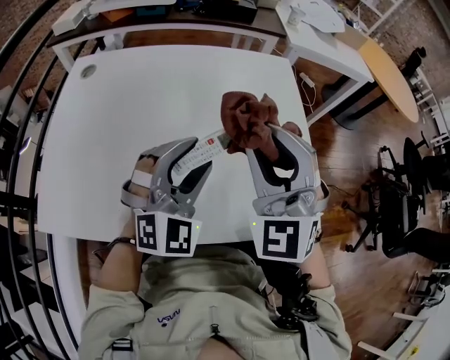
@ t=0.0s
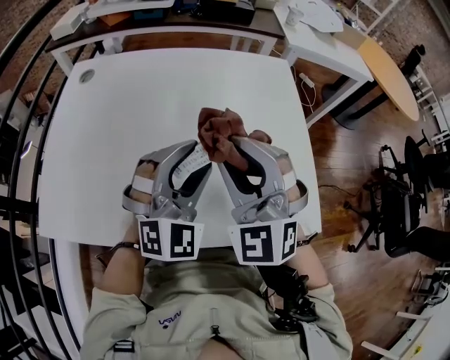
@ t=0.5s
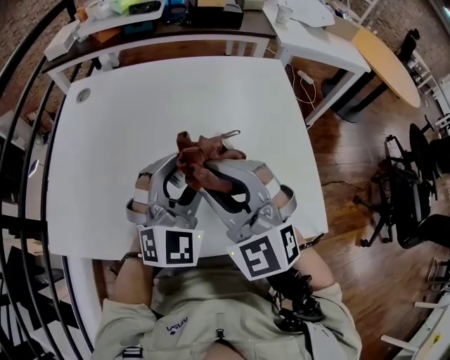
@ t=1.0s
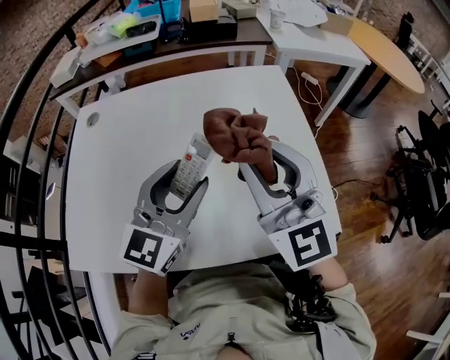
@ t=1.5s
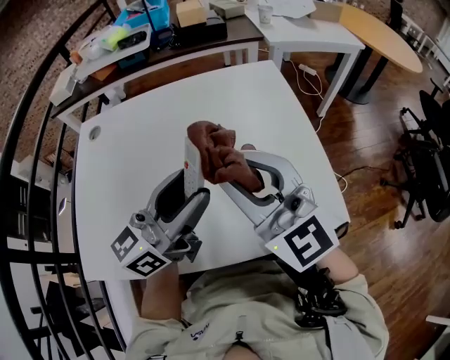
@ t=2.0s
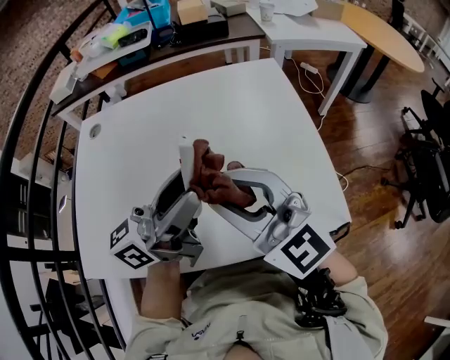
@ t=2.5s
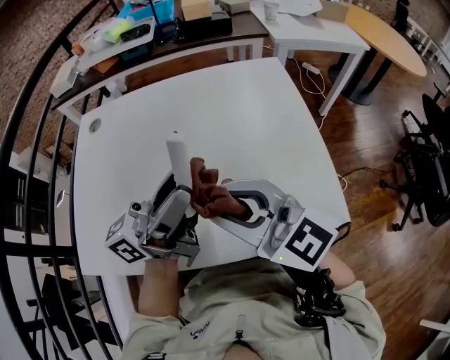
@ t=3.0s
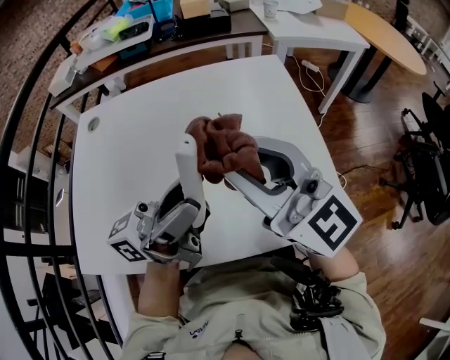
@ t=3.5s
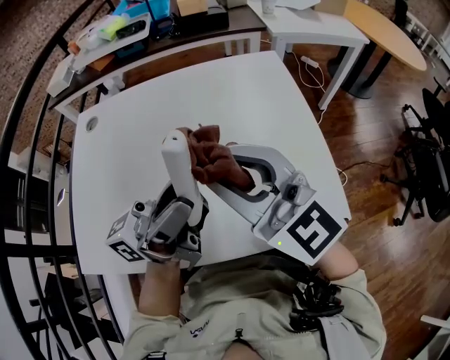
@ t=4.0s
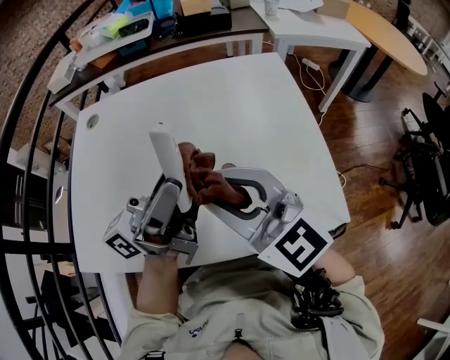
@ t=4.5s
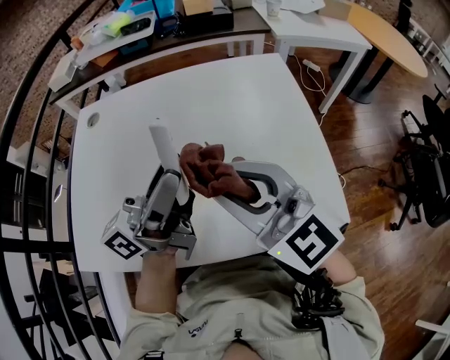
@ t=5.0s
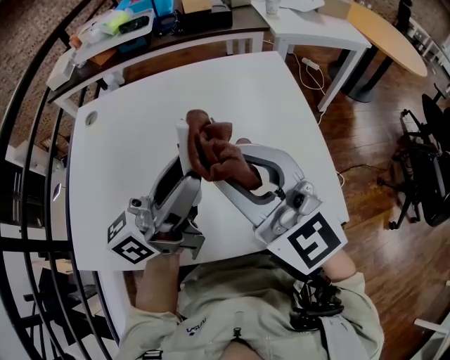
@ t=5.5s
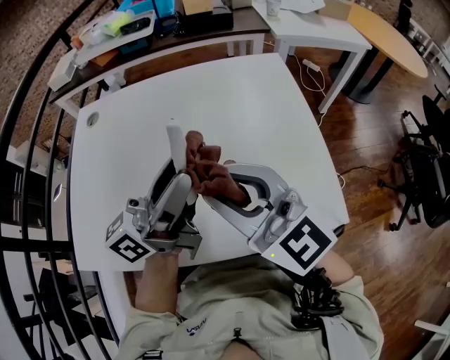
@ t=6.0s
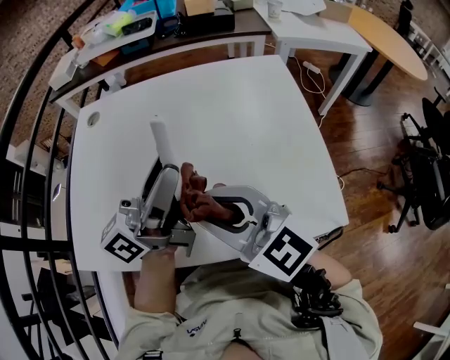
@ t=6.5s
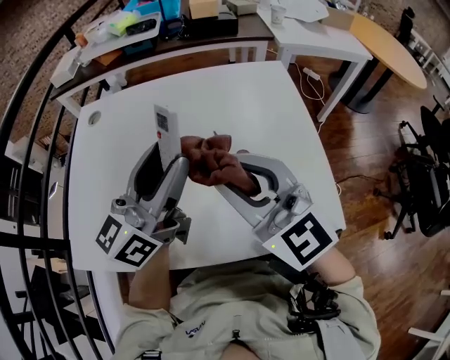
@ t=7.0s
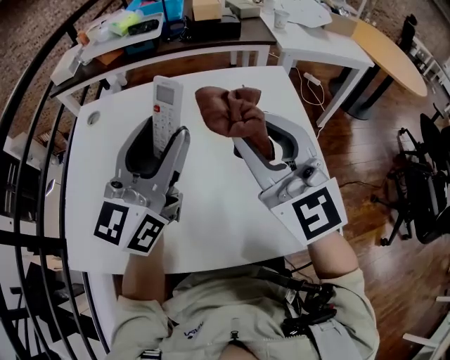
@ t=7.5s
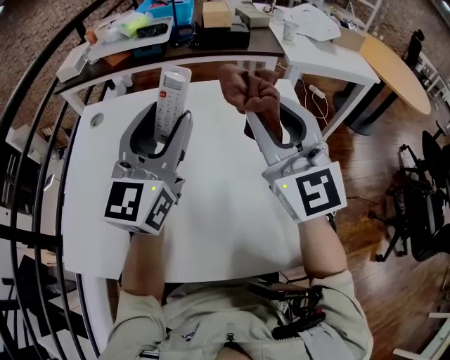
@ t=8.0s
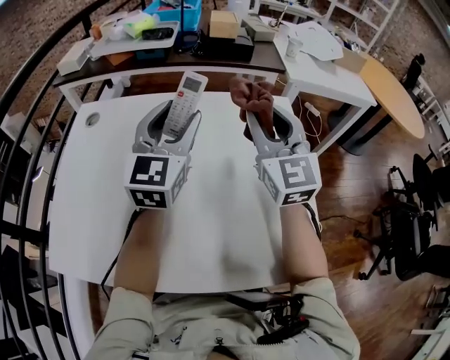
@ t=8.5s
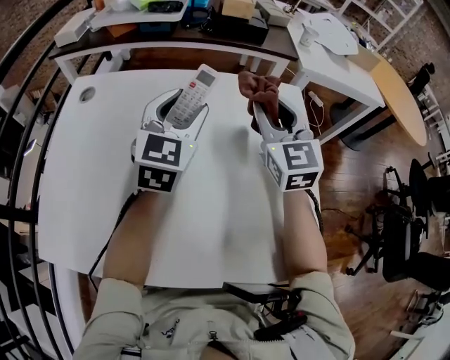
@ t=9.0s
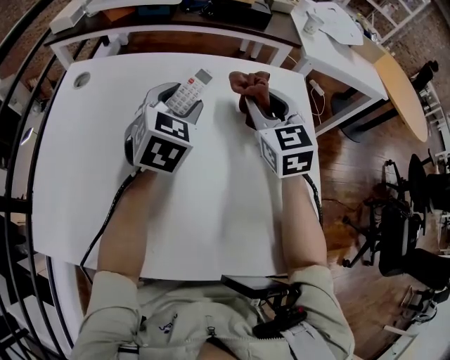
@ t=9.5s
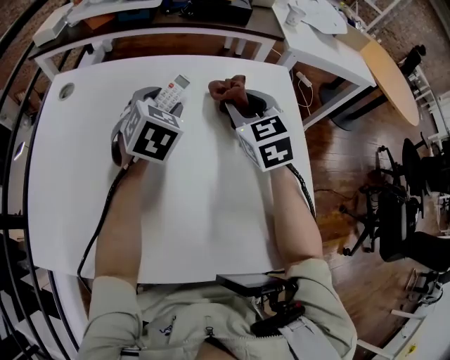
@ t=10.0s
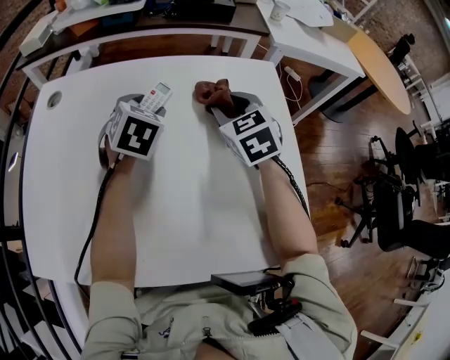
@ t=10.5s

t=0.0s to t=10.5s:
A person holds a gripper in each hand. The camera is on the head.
t=0.0s to t=2.0s: The left gripper heads upward, covering approximately 5 cm, and twists some 60 degrees counterclockwise, seen from behind, while the right gripper changes its angle by roughly 40 degrees.
t=2.0s to t=4.0s: The left gripper swivels approximately 40 degrees.
t=4.0s to t=6.5s: The right gripper goes up and down, about 10 cm each way, reversing 2 times, while the left gripper ends up roughly 5 cm from where it was, and turns by roughly 20 degrees.
t=6.5s to t=8.5s: The left gripper goes some 15 cm forward, and twists some 60 degrees clockwise, seen from behind. Meanwhile the right gripper is displaced forward and to the right by some 30 cm, and changes its angle by about 40 degrees.
t=8.5s to t=10.5s: Both grippers travel together downward, some 15 cm. The left gripper tips its fingers downward by roughly 40 degrees; the right gripper points its fingers about 40 degrees further downward.

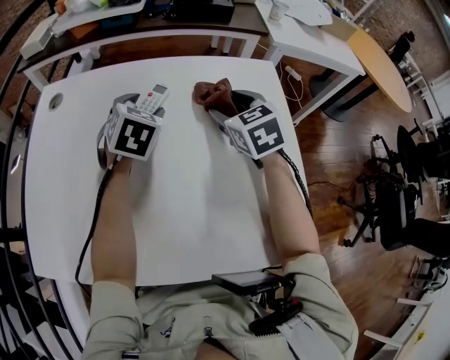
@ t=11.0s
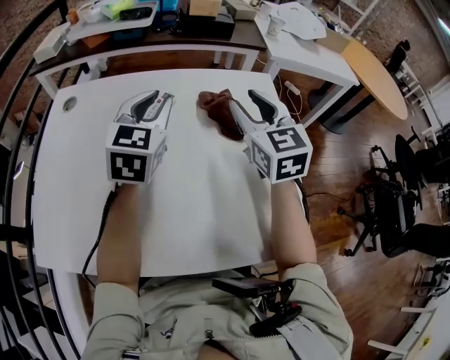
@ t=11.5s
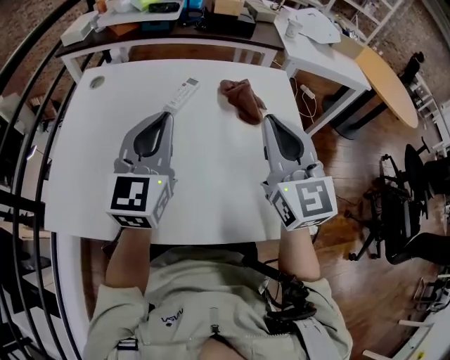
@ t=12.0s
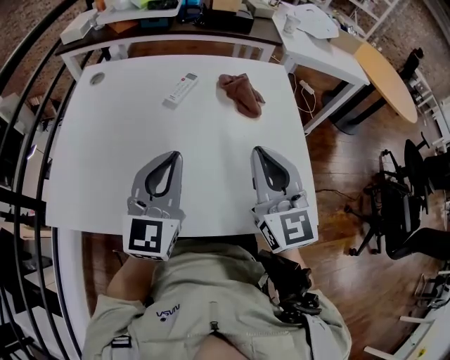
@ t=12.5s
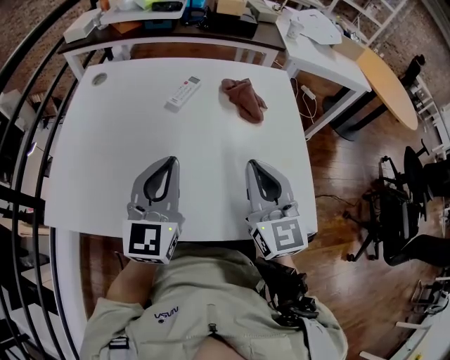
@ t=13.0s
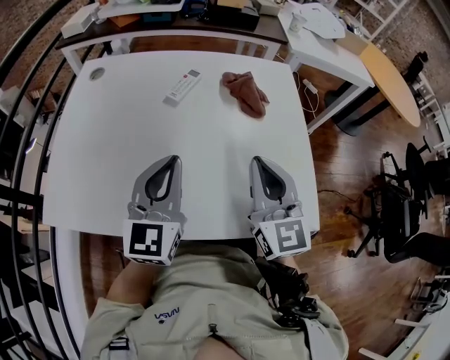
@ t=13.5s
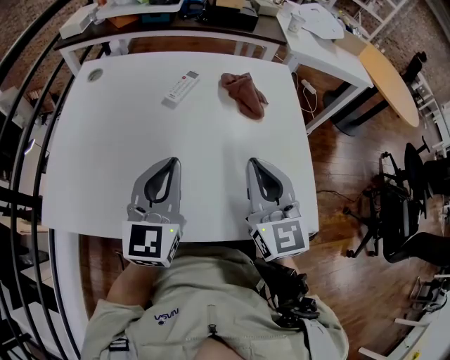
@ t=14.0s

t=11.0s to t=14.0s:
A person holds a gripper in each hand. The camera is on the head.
t=11.0s to t=12.5s: The left gripper is displaced backward by approximately 25 cm, tips its fingers upward by roughly 40 degrees, and closes. The right gripper is displaced backward and upward by about 25 cm, points its fingers approximately 40 degrees further upward, and closes its fingers.
t=12.5s to t=14.0s: The grippers make only small movements.

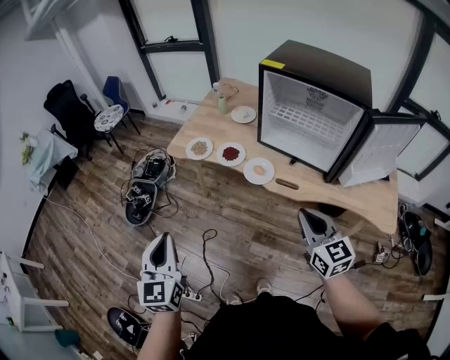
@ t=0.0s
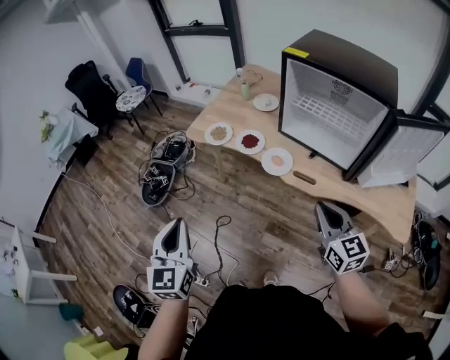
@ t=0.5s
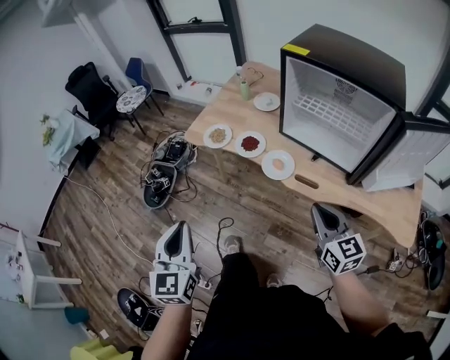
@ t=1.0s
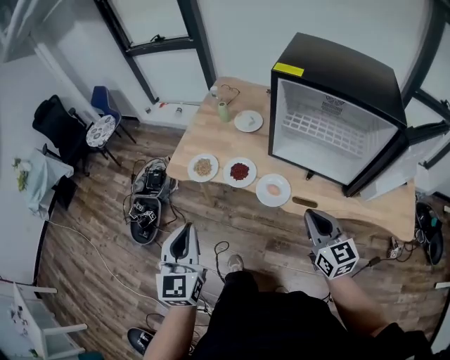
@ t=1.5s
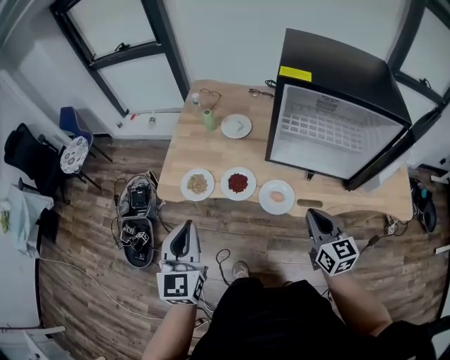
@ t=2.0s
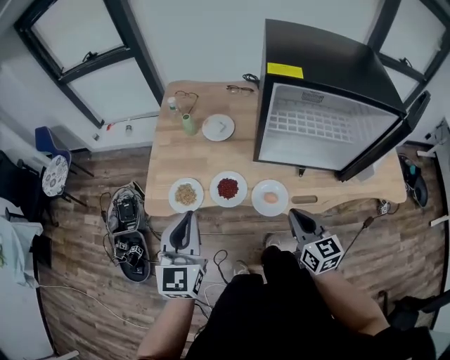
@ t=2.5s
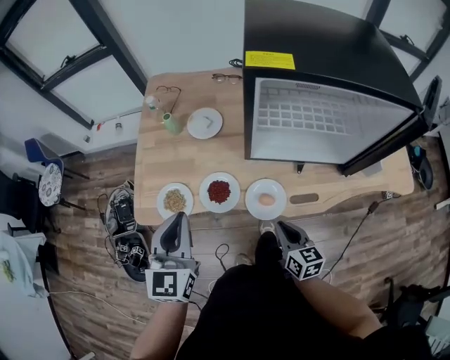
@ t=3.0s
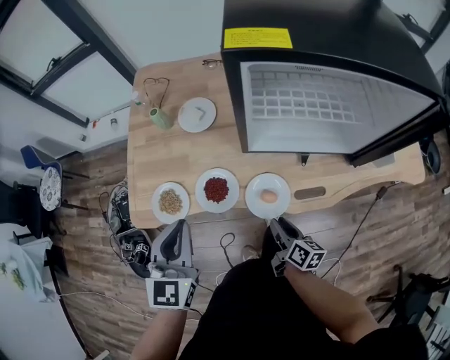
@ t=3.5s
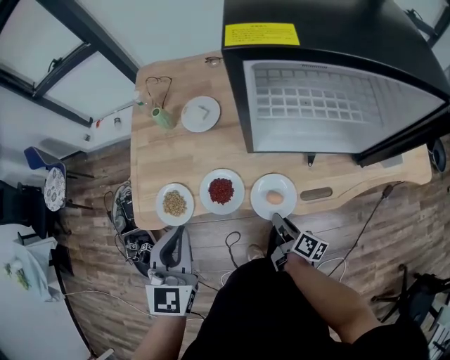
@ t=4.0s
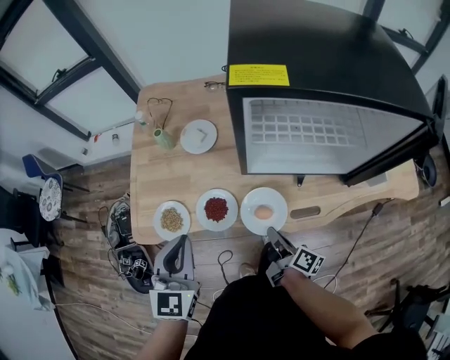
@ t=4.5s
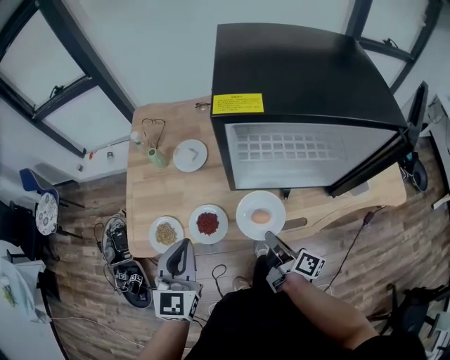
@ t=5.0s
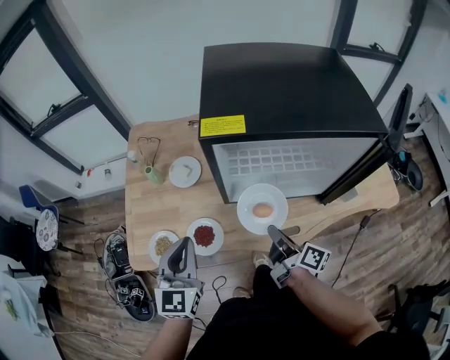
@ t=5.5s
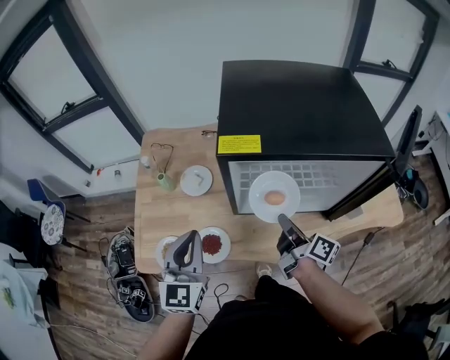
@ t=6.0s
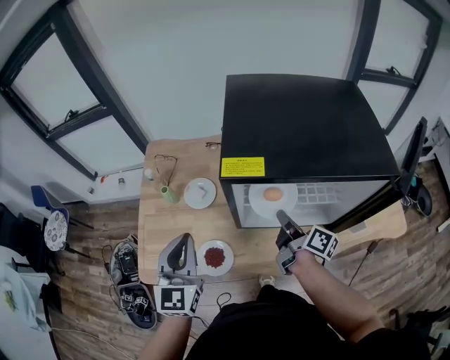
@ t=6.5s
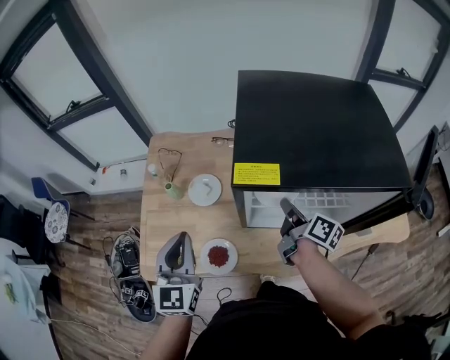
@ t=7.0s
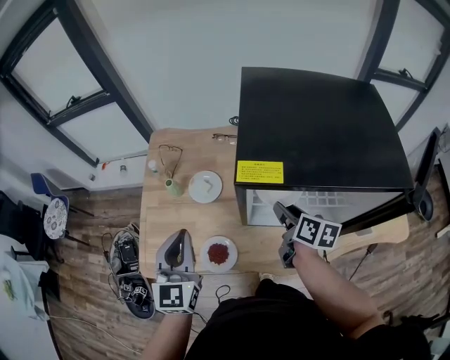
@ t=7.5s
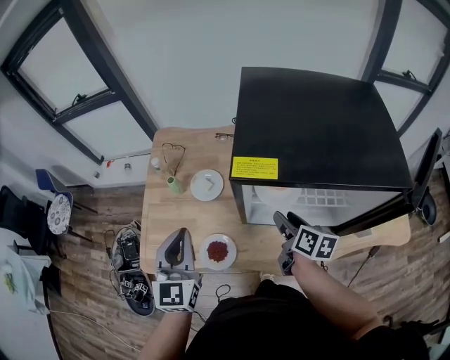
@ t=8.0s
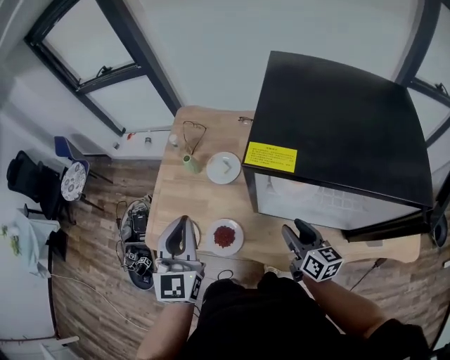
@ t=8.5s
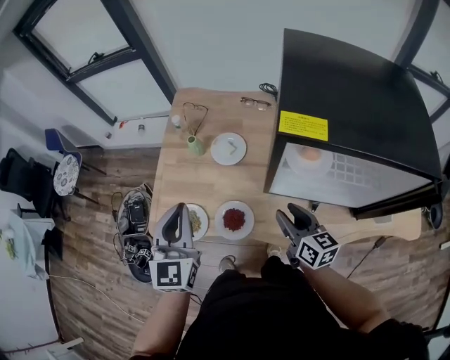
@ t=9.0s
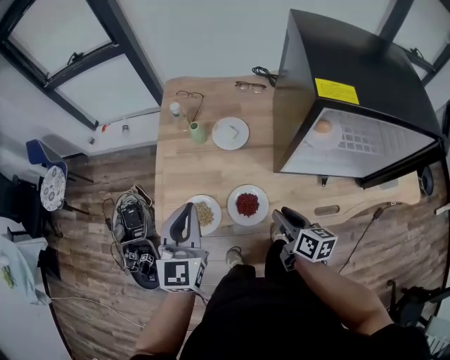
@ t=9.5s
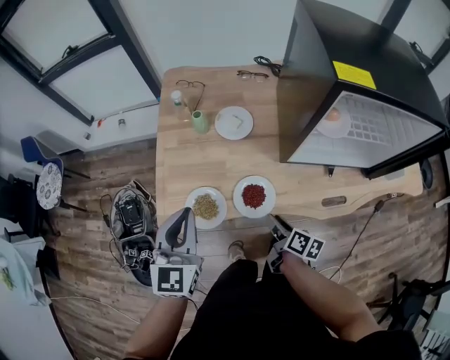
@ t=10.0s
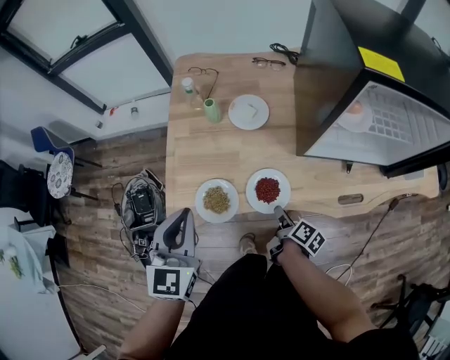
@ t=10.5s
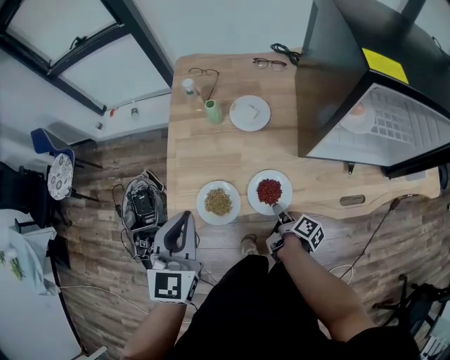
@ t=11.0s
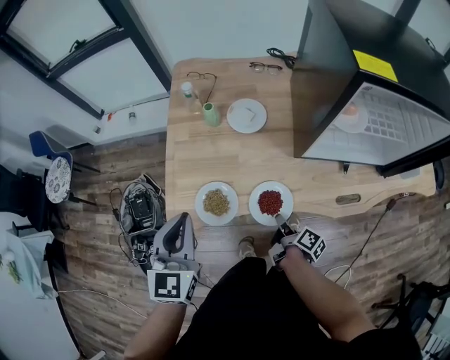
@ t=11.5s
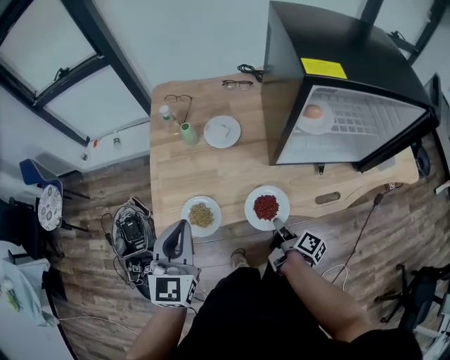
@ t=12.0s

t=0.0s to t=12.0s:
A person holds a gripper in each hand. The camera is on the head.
t=0.0s to t=2.0s: The left gripper moves forward, some 30 cm, and rotates approximately 20 degrees. Meanwhile the right gripper moves forward, about 20 cm, and swivels roughly 20 degrees.
t=2.0s to t=4.0s: The right gripper heads downward, covering some 25 cm, and rolls clockwise, seen from behind, by about 70 degrees; the left gripper shifts about 15 cm forward and downward, and turns by some 20 degrees.
t=4.0s to t=6.0s: The right gripper goes approximately 25 cm upward and forward, and swivels about 20 degrees. The left gripper is displaced upward, forward and to the right by about 15 cm.
t=6.0s to t=8.0s: The right gripper moves forward, approximately 5 cm, changes its angle by approximately 30 degrees, and opens. The left gripper shifts by some 5 cm.
t=8.0s to t=10.0s: The left gripper heads to the left and downward, covering roughly 20 cm, while the right gripper is displaced to the left, downward and backward by approximately 30 cm.
t=10.0s to t=12.0s: The right gripper reaches approximately 10 cm downward, then returns, turns by some 30 degrees, and closes its fingers.
